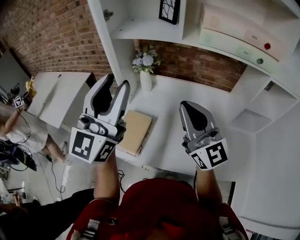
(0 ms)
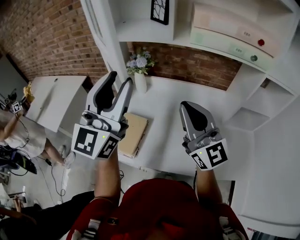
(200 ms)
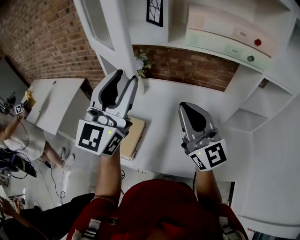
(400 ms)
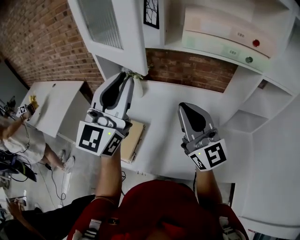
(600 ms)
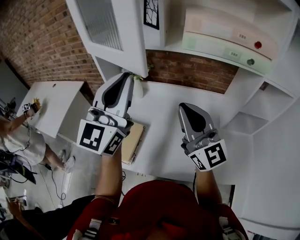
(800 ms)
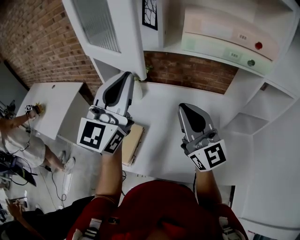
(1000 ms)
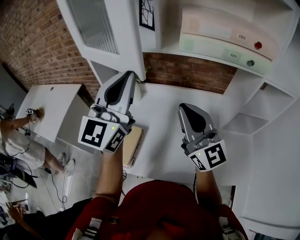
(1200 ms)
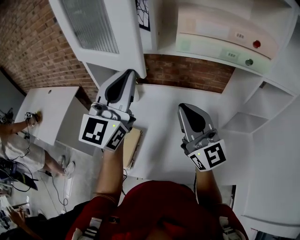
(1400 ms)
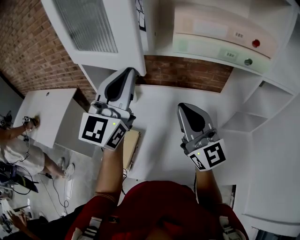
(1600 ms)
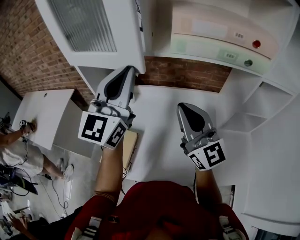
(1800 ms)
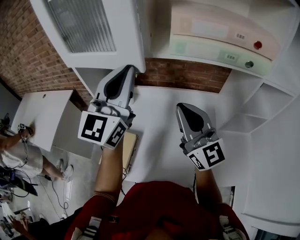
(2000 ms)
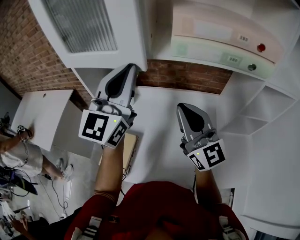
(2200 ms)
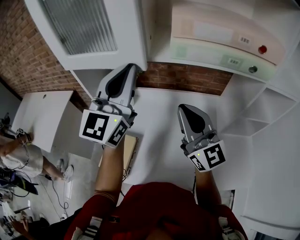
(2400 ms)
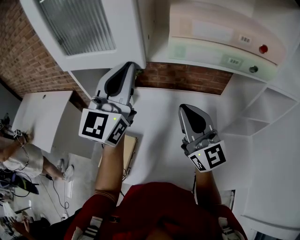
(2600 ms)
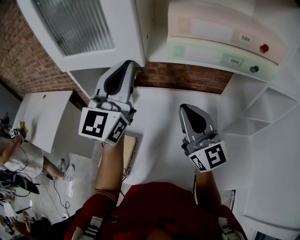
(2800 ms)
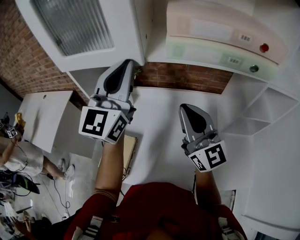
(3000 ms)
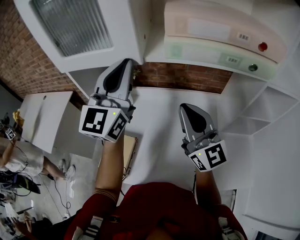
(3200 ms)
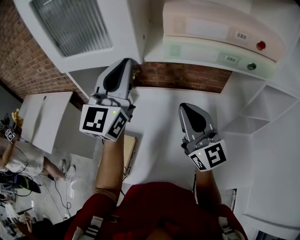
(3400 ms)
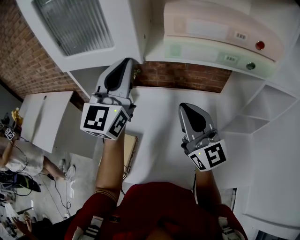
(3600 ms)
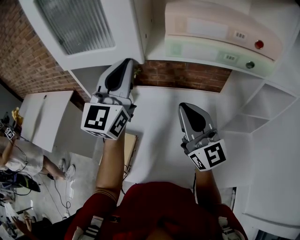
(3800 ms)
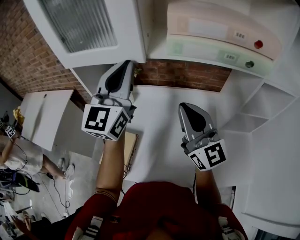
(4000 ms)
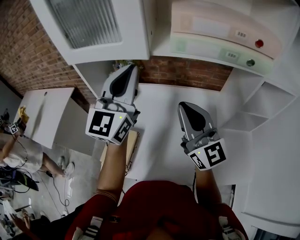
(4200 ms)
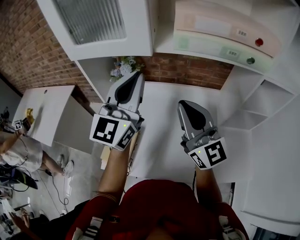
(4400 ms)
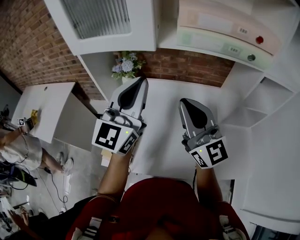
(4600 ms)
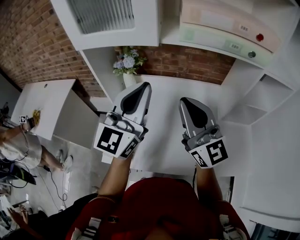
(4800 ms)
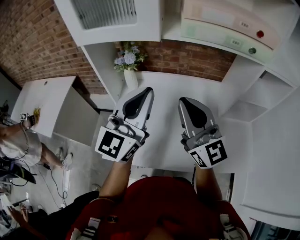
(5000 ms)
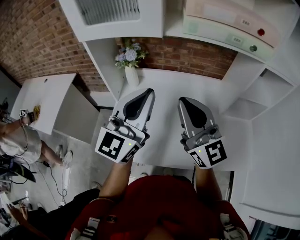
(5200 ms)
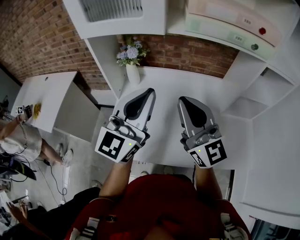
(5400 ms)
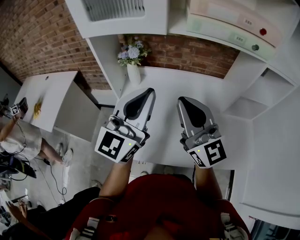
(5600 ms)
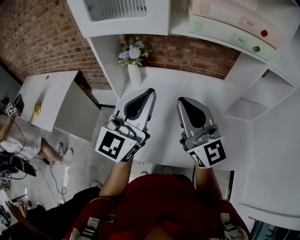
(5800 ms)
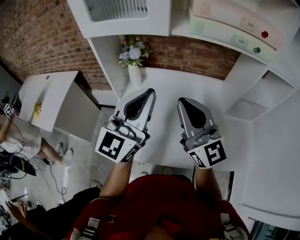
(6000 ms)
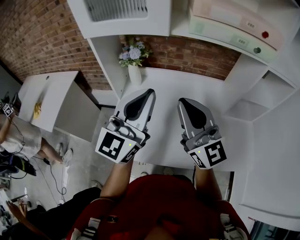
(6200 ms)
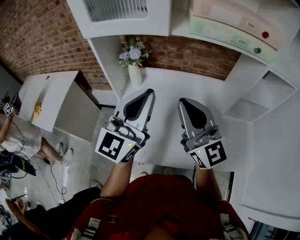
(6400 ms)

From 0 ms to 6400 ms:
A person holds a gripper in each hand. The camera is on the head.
From 0 ms to 1600 ms: The left gripper is displaced forward and to the right by roughly 15 cm, and closes up. Meanwhile the right gripper heads to the right and forward, covering approximately 10 cm.
From 1600 ms to 3200 ms: Both grippers move forward, roughly 5 cm.
From 3200 ms to 4800 ms: The left gripper shifts about 15 cm backward and downward. The right gripper shifts some 5 cm backward.
From 4800 ms to 6400 ms: The left gripper changes place by approximately 5 cm.

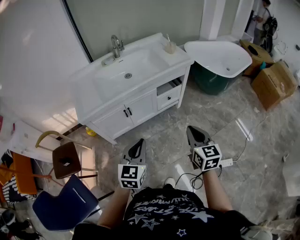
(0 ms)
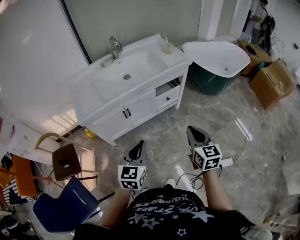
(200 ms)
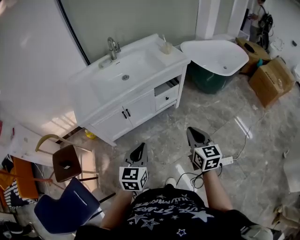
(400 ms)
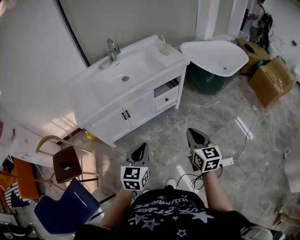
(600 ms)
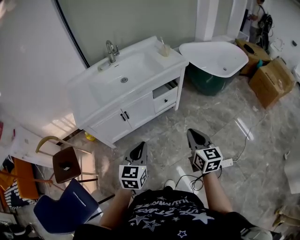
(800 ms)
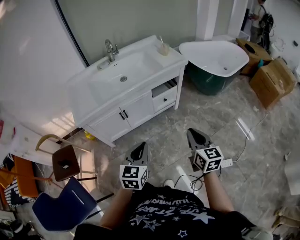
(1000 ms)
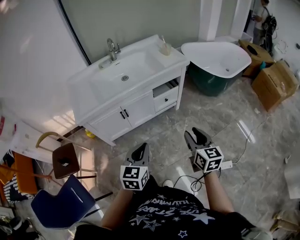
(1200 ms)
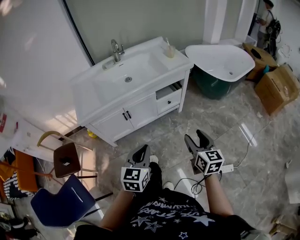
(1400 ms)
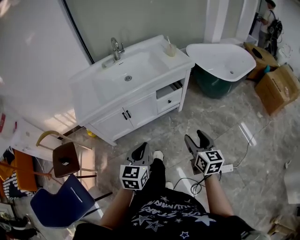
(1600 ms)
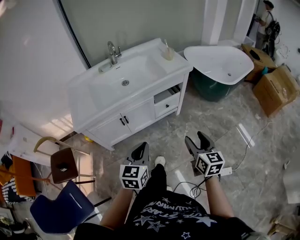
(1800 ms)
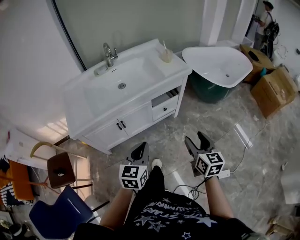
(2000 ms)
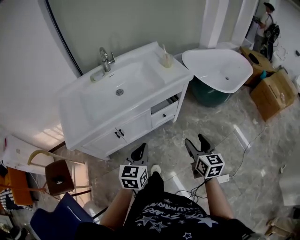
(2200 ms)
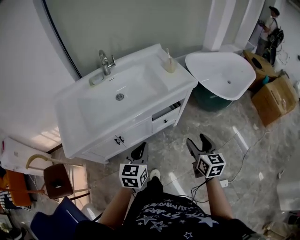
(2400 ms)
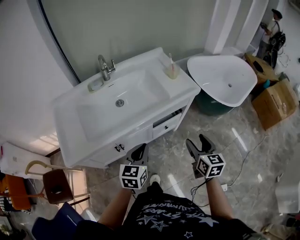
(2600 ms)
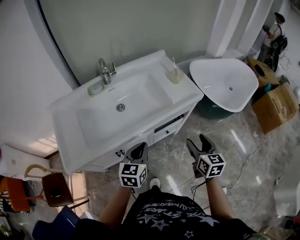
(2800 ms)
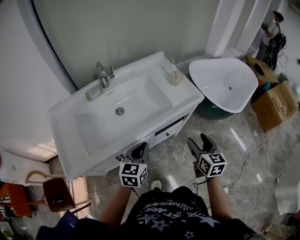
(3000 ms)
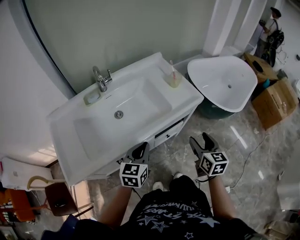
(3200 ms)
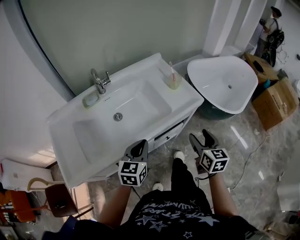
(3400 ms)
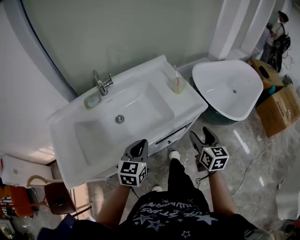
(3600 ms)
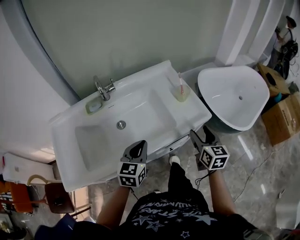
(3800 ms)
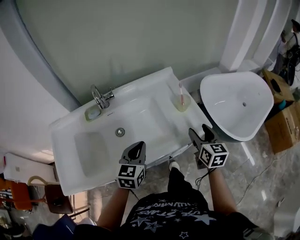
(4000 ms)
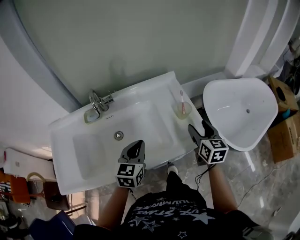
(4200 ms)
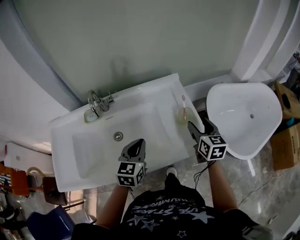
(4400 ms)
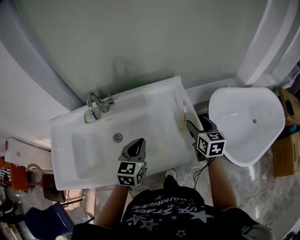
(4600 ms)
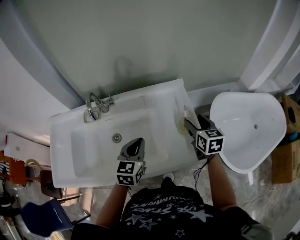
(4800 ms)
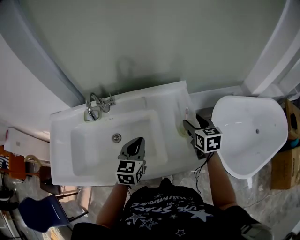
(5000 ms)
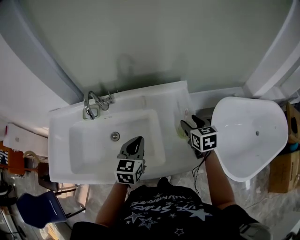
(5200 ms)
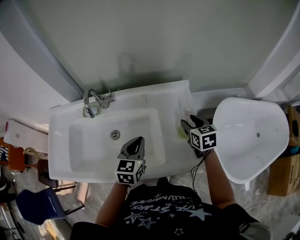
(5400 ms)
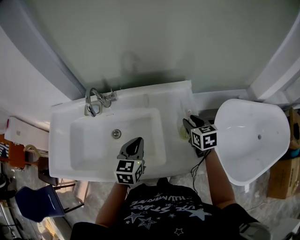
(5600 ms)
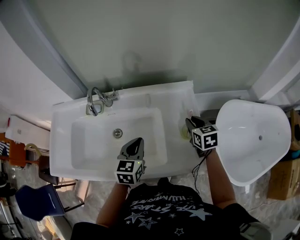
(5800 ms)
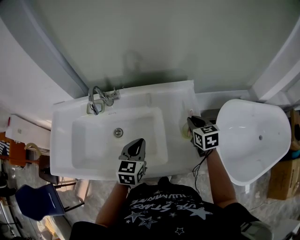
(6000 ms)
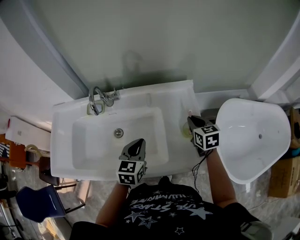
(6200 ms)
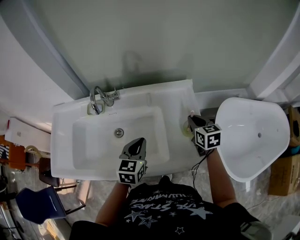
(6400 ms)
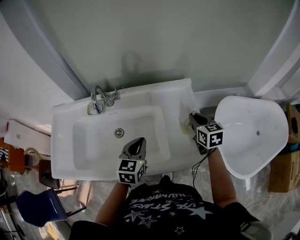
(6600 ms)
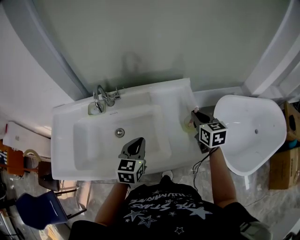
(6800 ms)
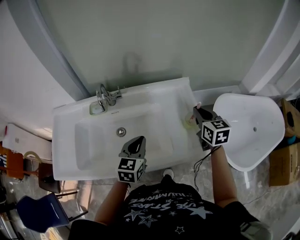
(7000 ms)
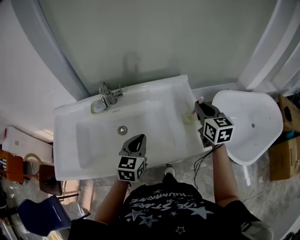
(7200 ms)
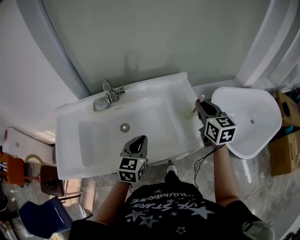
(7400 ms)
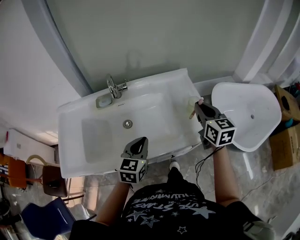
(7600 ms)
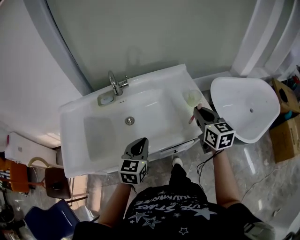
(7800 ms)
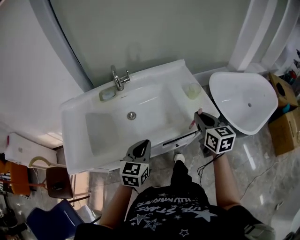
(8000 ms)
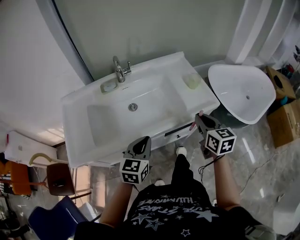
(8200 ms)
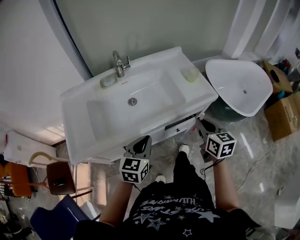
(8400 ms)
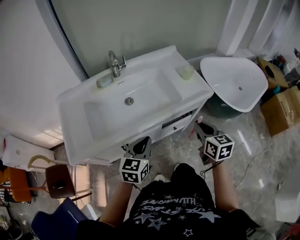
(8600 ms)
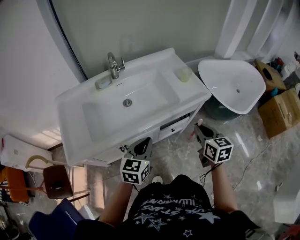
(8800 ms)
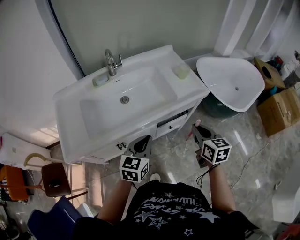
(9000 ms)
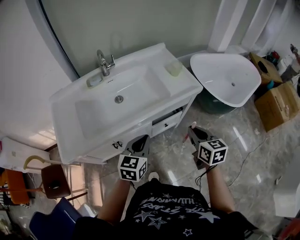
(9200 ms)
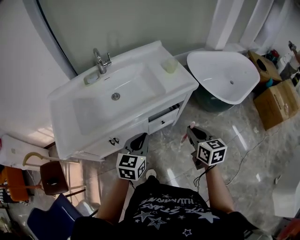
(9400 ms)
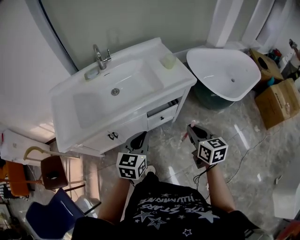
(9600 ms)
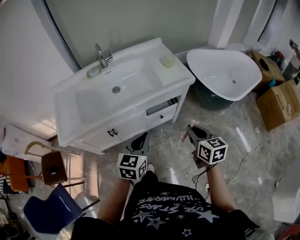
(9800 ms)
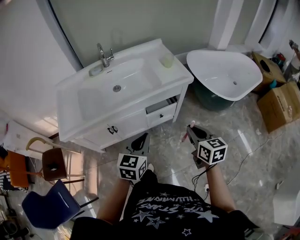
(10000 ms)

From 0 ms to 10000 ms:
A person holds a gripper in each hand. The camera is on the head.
From 0 ms to 1400 ms: The two grippers go about 5 cm to the right. The right gripper opens.
From 1400 ms to 2800 ms: The grippers both shift forward by approximately 35 cm.
From 2800 ms to 4200 ms: The grippers both shift forward by some 30 cm.
From 4200 ms to 5800 ms: The left gripper travels forward by approximately 10 cm; the right gripper shifts roughly 20 cm forward, turns by roughly 30 degrees, and closes up.
From 5800 ms to 7200 ms: The left gripper travels backward by some 5 cm; the right gripper goes about 15 cm upward and backward, and swivels approximately 20 degrees.
From 7200 ms to 8600 ms: Both grippers travel together backward, some 30 cm.
From 8600 ms to 10000 ms: The left gripper shifts approximately 20 cm to the right and backward, while the right gripper is displaced backward and to the right by about 20 cm.

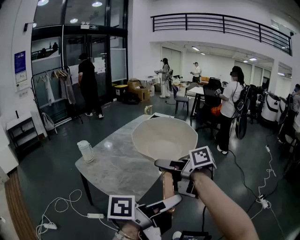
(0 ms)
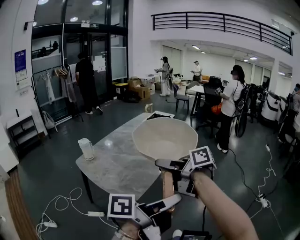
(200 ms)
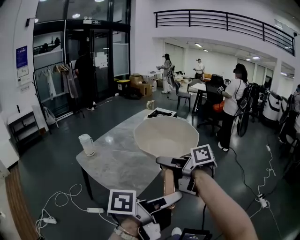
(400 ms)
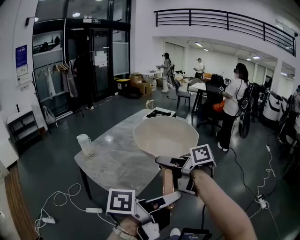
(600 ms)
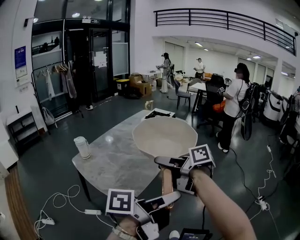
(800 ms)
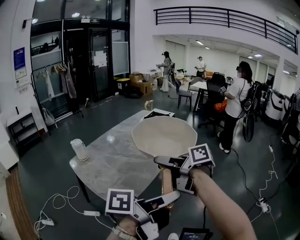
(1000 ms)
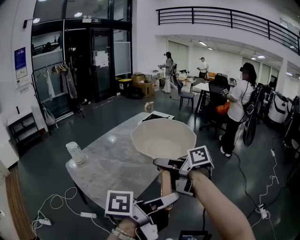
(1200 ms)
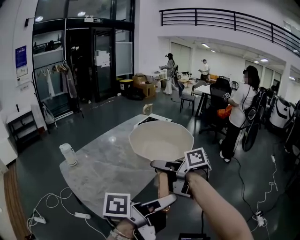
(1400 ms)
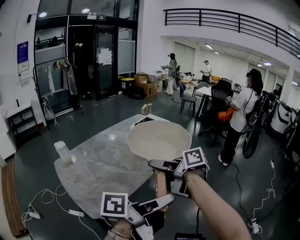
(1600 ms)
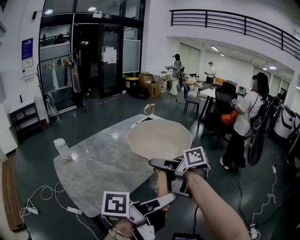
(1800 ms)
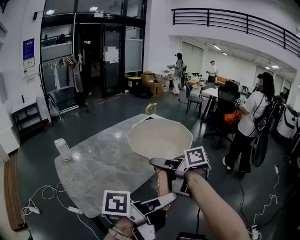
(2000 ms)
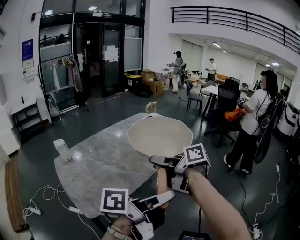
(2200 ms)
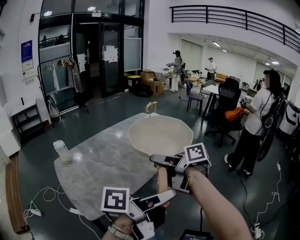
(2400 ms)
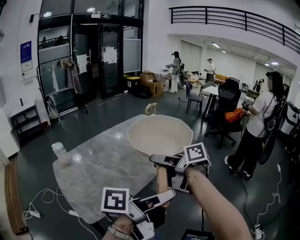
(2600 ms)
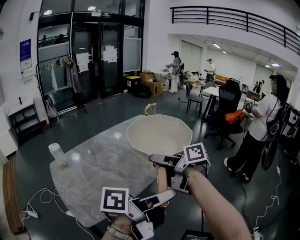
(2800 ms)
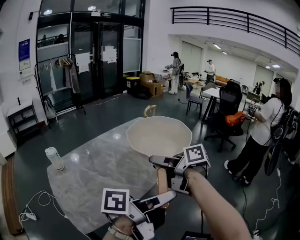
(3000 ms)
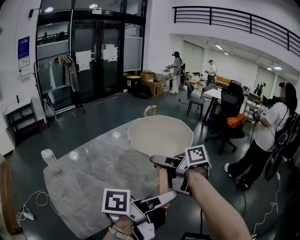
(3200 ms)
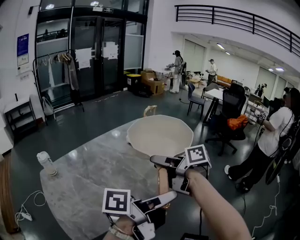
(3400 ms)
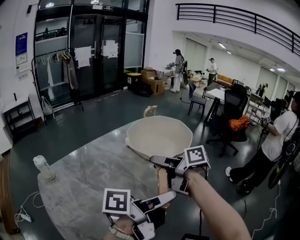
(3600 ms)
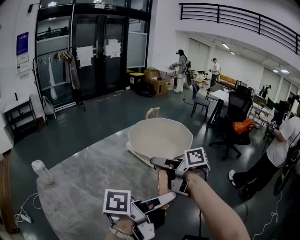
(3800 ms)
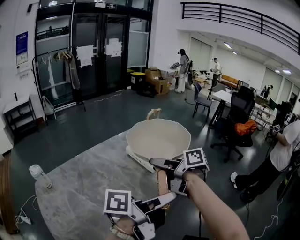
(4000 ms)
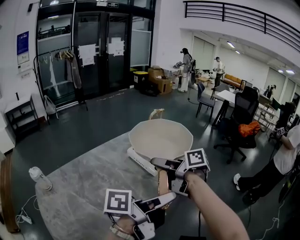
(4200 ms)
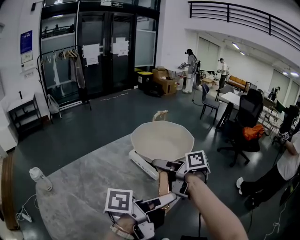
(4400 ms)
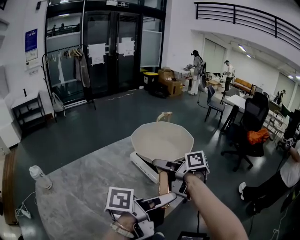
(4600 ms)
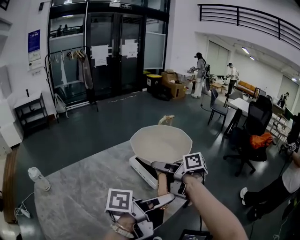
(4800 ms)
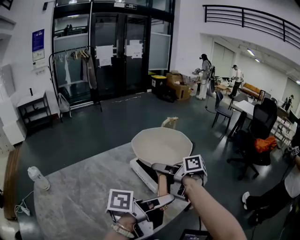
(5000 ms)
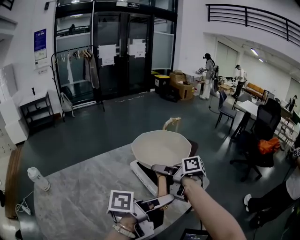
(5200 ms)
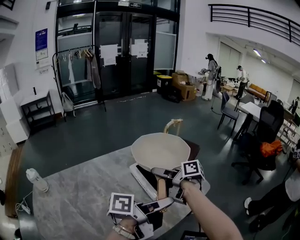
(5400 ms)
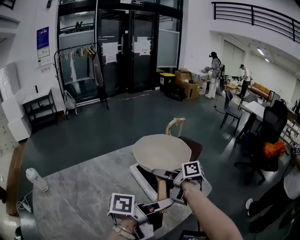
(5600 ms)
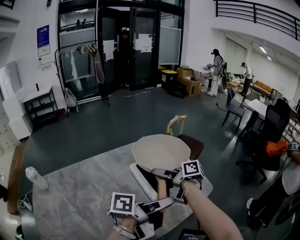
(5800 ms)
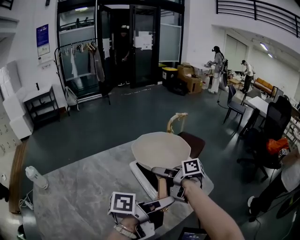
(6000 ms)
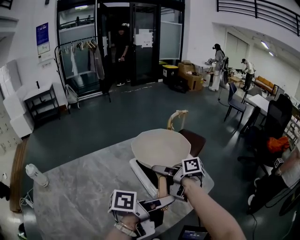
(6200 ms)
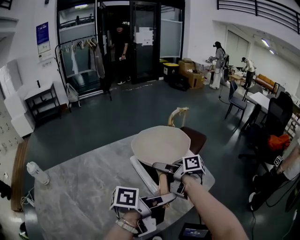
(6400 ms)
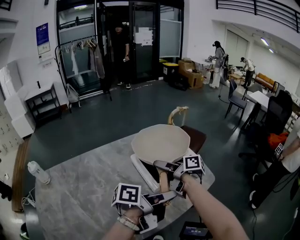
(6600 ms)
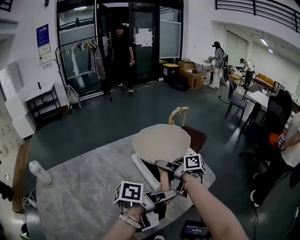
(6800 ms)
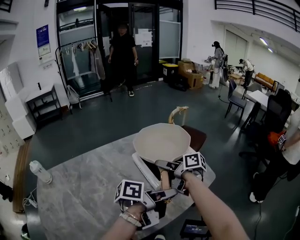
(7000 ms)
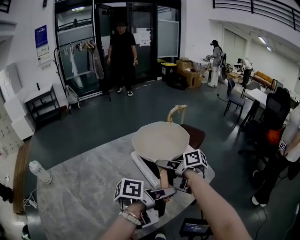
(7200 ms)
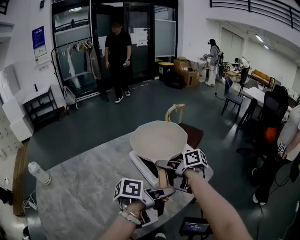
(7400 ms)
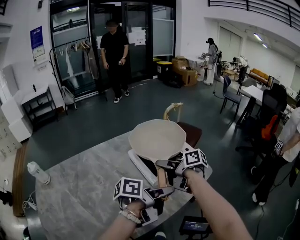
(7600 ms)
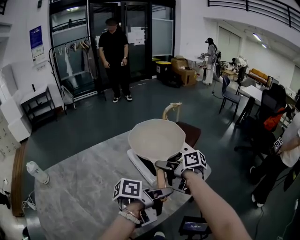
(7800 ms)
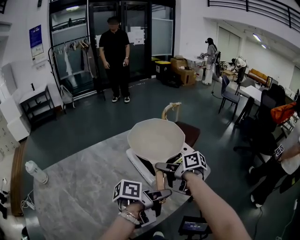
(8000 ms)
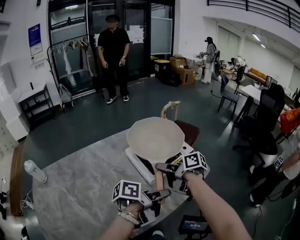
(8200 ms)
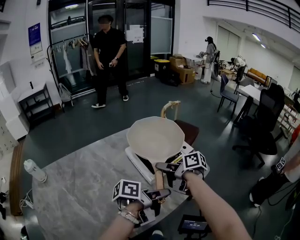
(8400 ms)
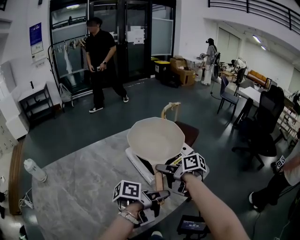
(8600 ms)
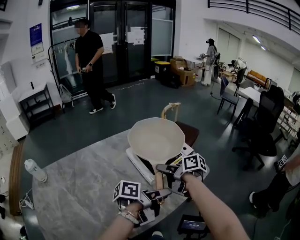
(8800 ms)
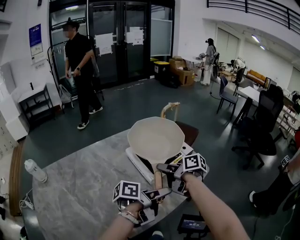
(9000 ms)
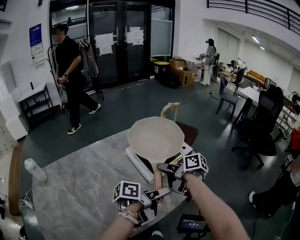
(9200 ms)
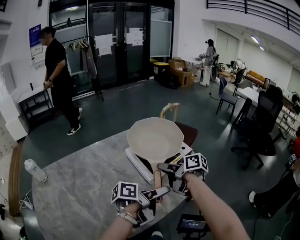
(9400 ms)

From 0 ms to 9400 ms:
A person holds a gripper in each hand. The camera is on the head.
From 0 ms to 1600 ms: The right gripper moves some 20 cm.
From 1600 ms to 3200 ms: The right gripper shifts by approximately 15 cm.
From 3200 ms to 4800 ms: The right gripper ends up approximately 25 cm from where it was.
From 4800 ms to 6200 ms: The right gripper heads downward, covering some 10 cm.
